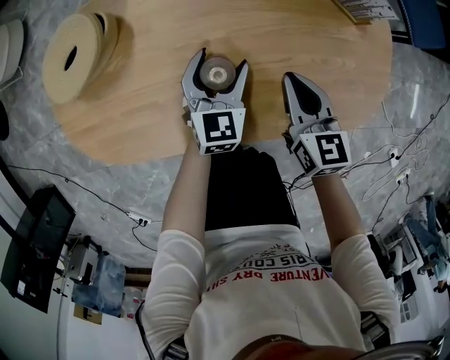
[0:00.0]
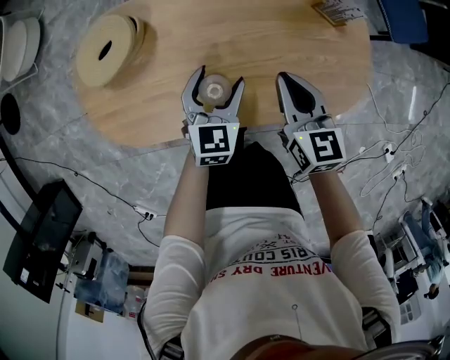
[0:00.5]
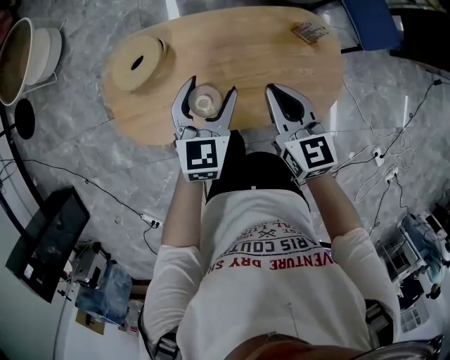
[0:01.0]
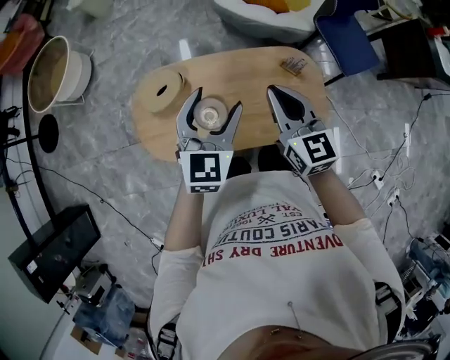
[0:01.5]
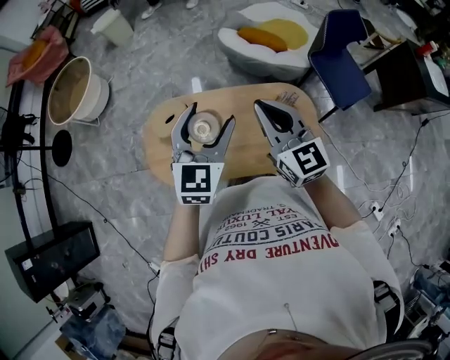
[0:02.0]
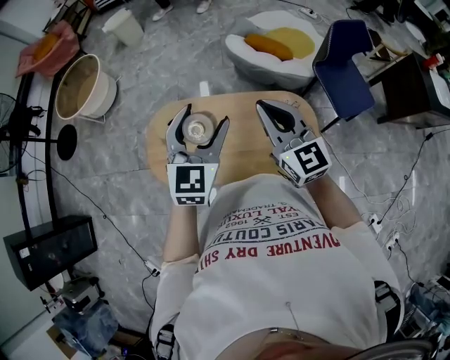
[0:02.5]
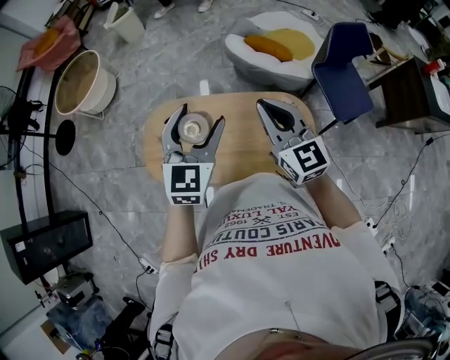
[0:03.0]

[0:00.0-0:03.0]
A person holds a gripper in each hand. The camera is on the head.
0.0 to 1.5 s: The grippers both shift upward by about 50 cm. The right gripper swivels approximately 20 degrees.
1.5 to 3.0 s: The grippers both shift upward by about 10 cm.

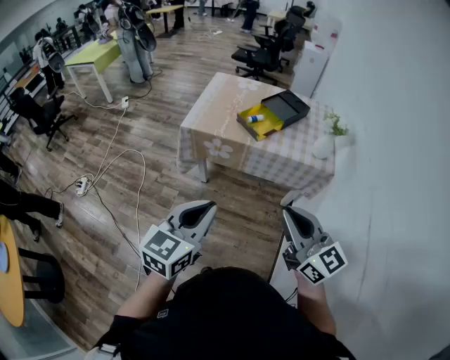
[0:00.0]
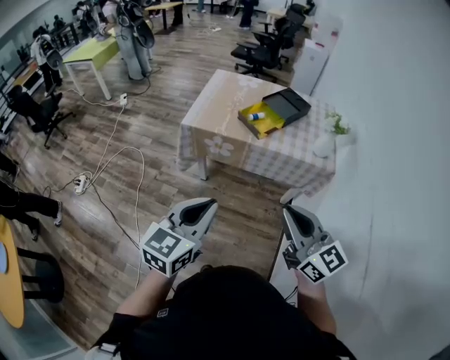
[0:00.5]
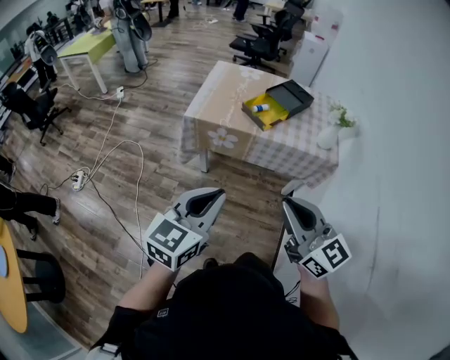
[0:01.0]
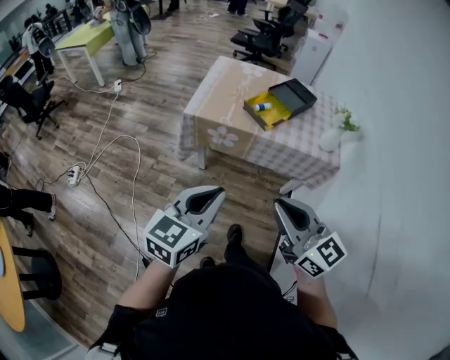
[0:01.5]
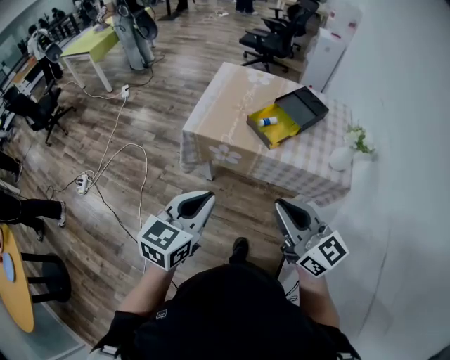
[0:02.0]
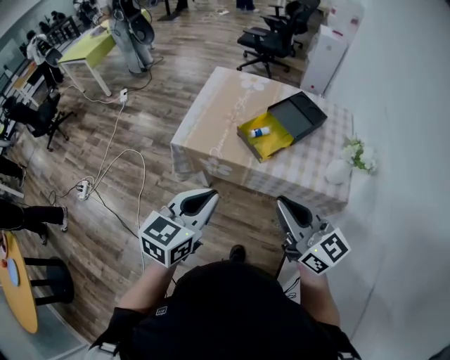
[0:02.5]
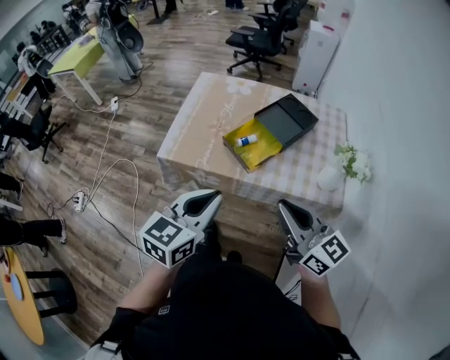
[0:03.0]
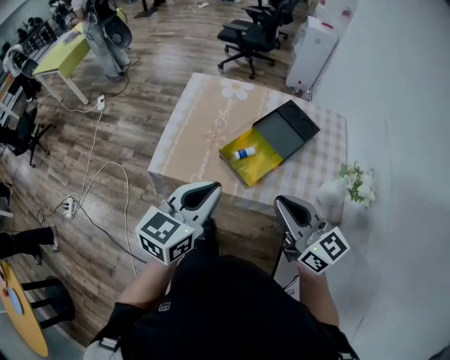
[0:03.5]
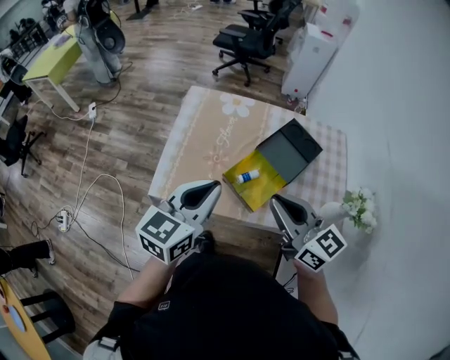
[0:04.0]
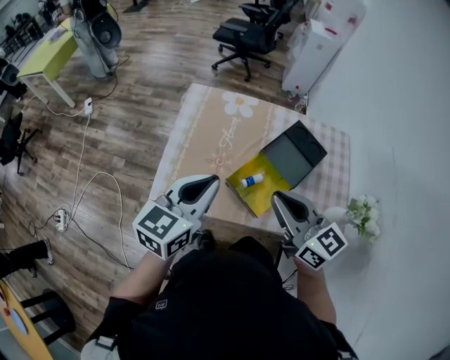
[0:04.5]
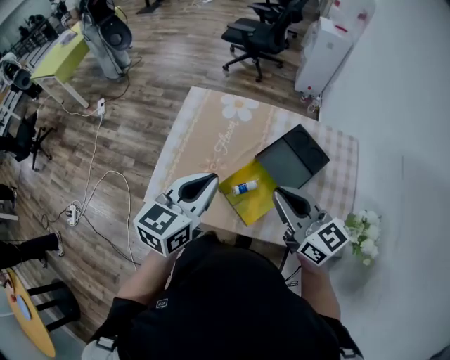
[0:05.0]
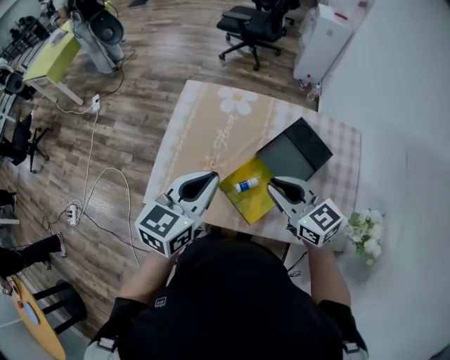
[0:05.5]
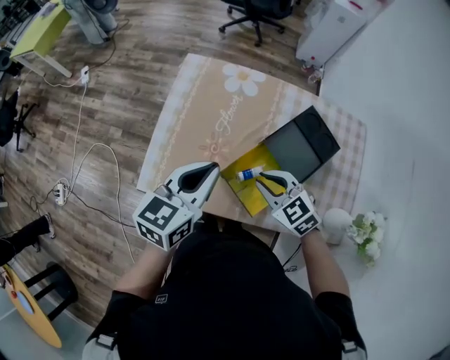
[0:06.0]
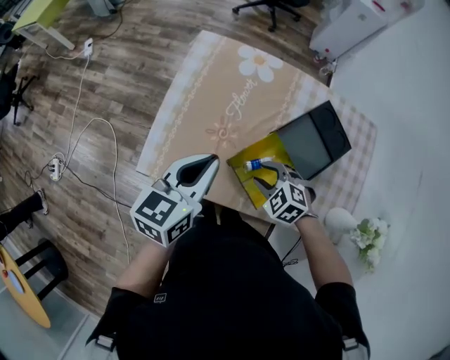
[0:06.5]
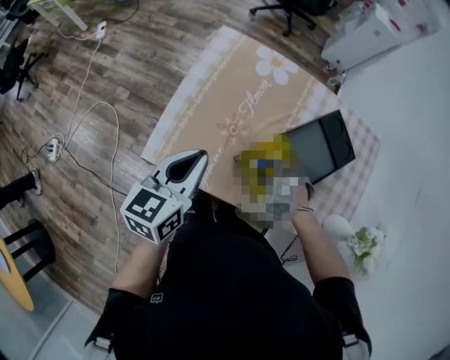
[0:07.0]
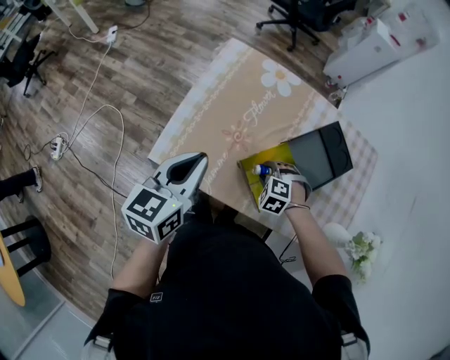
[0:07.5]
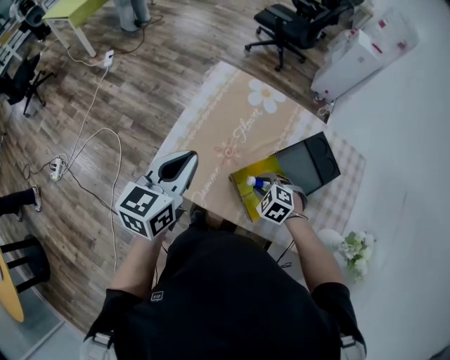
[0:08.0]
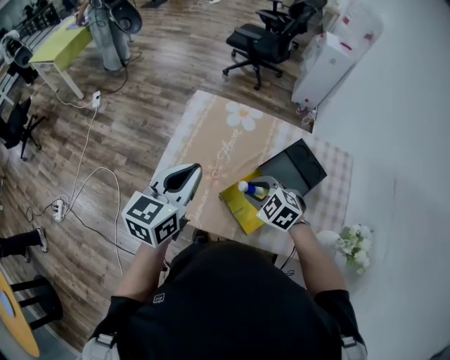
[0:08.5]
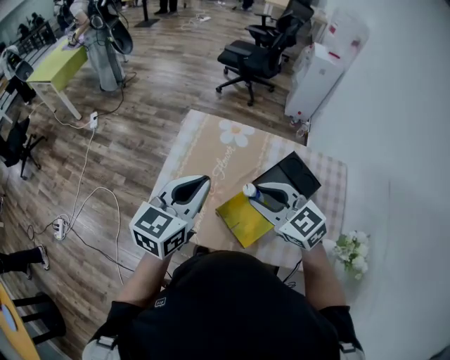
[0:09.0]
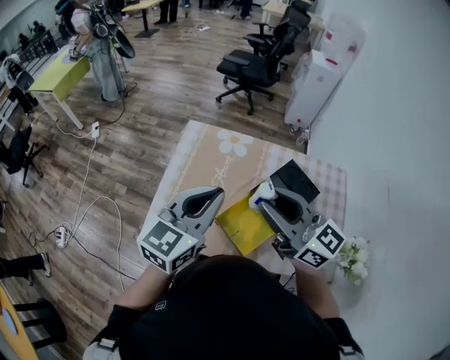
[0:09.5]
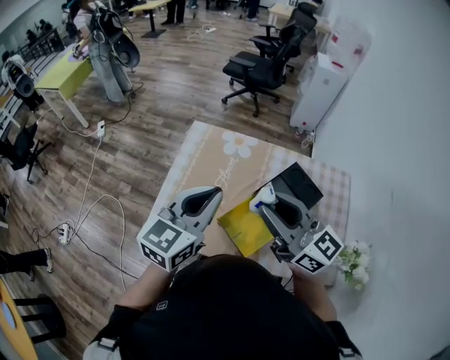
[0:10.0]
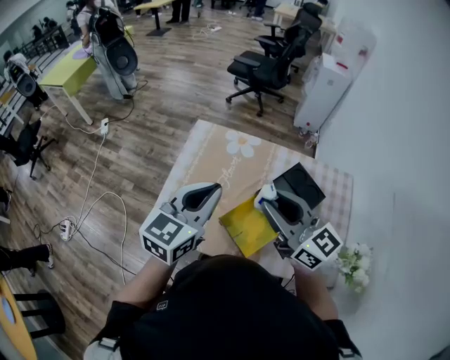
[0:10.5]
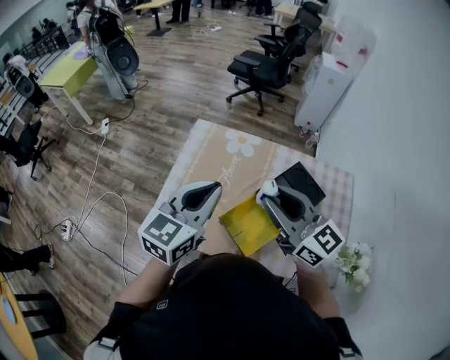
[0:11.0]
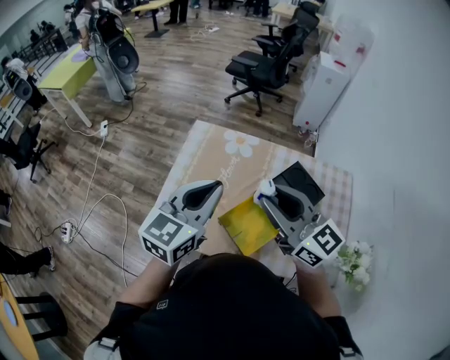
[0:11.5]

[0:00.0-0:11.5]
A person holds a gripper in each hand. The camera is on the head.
0.0 to 2.0 s: The grippers both shift forward by roughly 15 cm.
2.0 to 4.0 s: Both grippers travel together forward, approximately 35 cm.
4.0 to 6.0 s: The right gripper moves downward and forward, about 25 cm, and tips its fingers downward by approximately 40 degrees, while the left gripper travels forward and downward by roughly 15 cm.
6.0 to 7.5 s: The right gripper moves downward, about 15 cm, points its fingers some 30 degrees further downward, and opens. Meanwhile the left gripper is displaced to the left by approximately 10 cm.
7.5 to 9.5 s: The right gripper is displaced upward by approximately 40 cm, and angles its fingers upward, by some 80 degrees. The left gripper shifts some 20 cm upward and to the right, and changes its angle by approximately 30 degrees.
9.5 to 11.5 s: The grippers make only small movements.

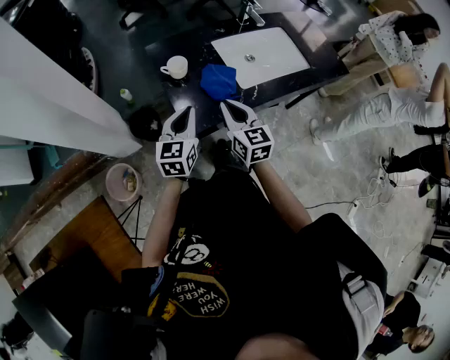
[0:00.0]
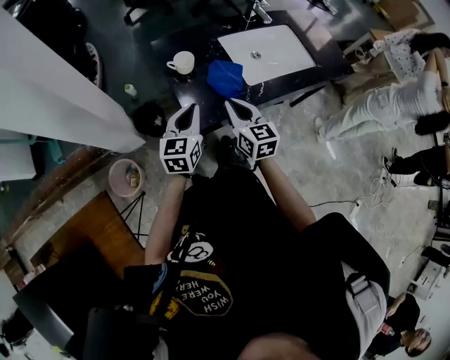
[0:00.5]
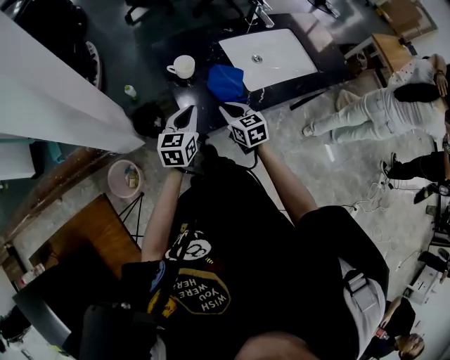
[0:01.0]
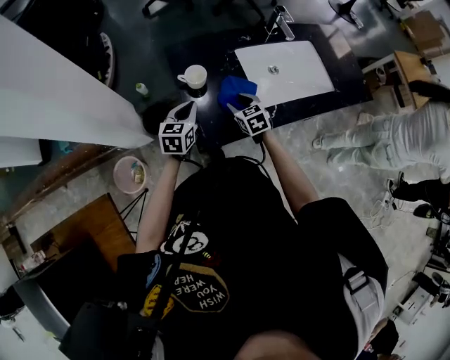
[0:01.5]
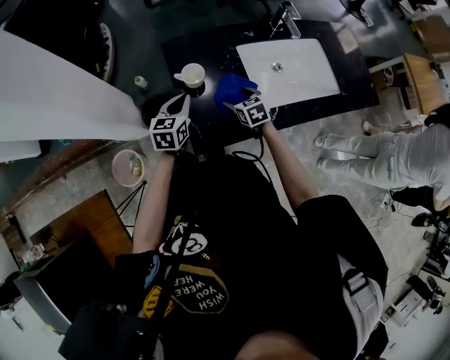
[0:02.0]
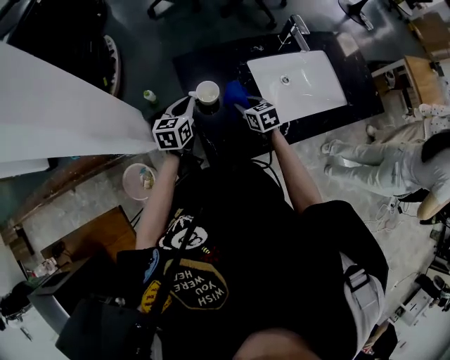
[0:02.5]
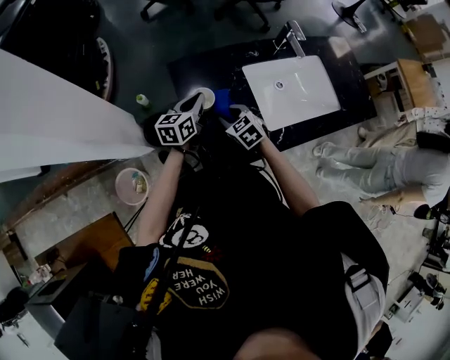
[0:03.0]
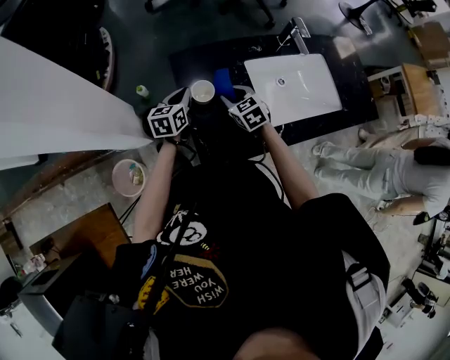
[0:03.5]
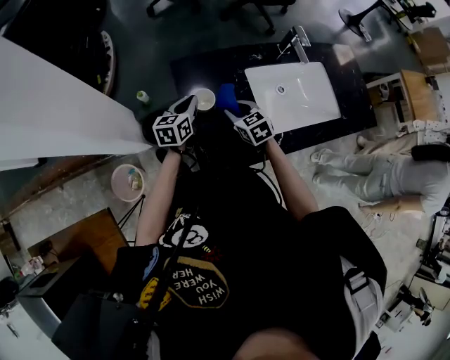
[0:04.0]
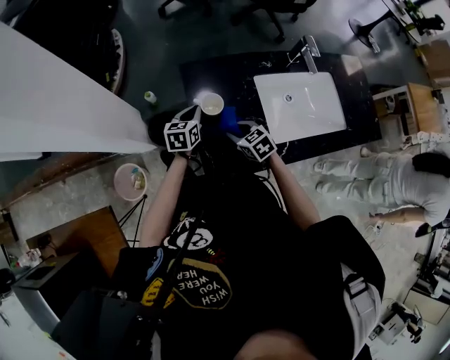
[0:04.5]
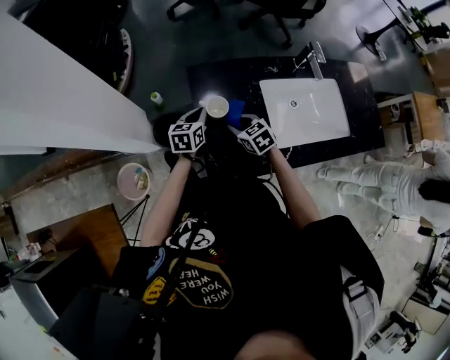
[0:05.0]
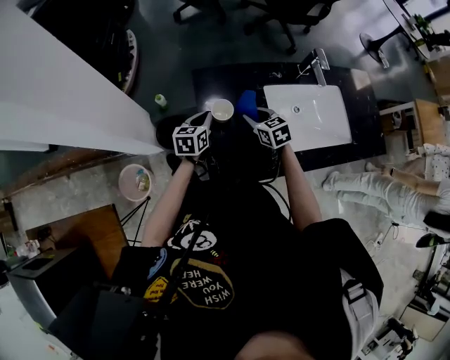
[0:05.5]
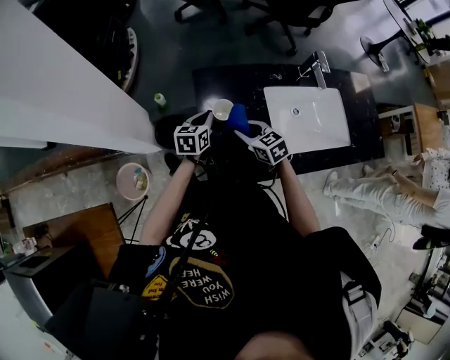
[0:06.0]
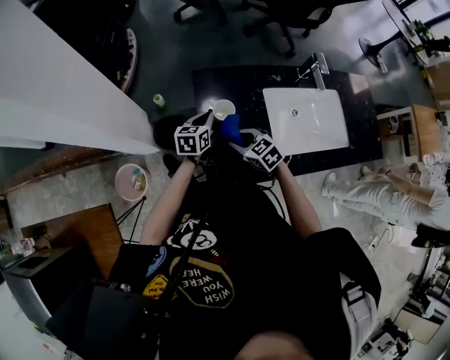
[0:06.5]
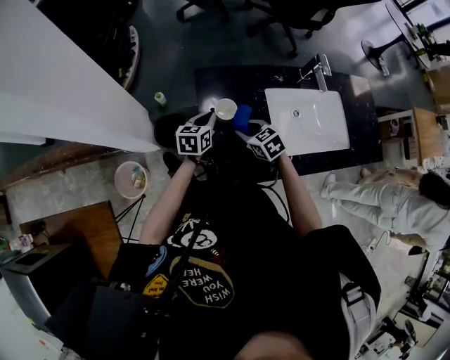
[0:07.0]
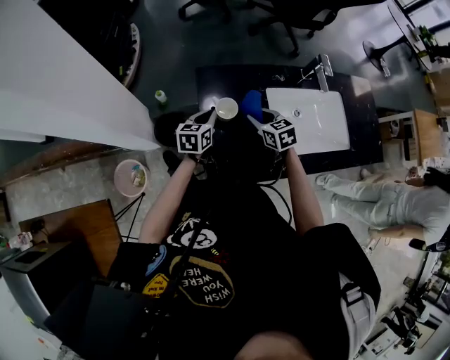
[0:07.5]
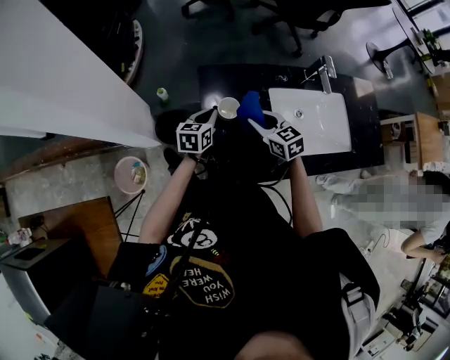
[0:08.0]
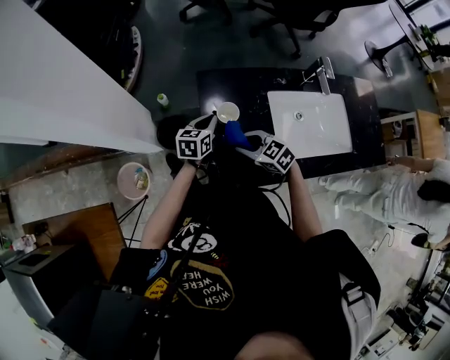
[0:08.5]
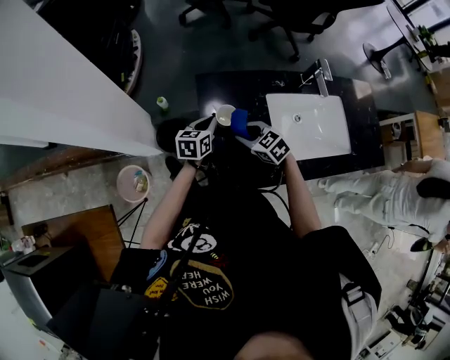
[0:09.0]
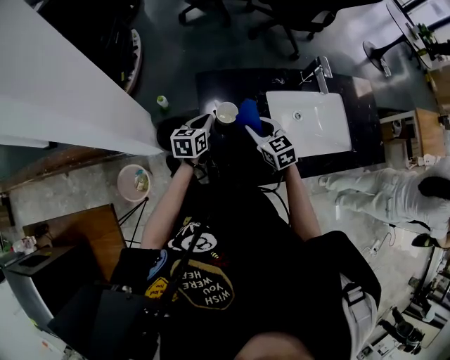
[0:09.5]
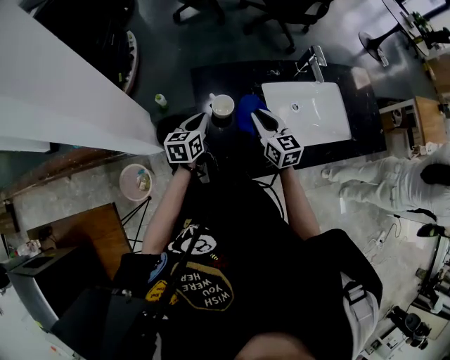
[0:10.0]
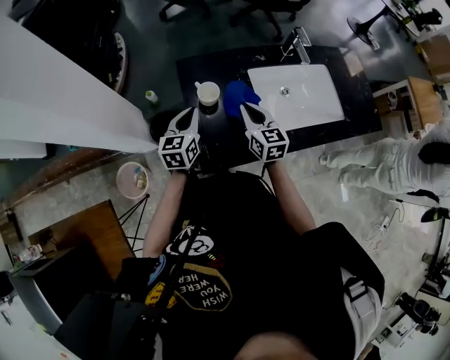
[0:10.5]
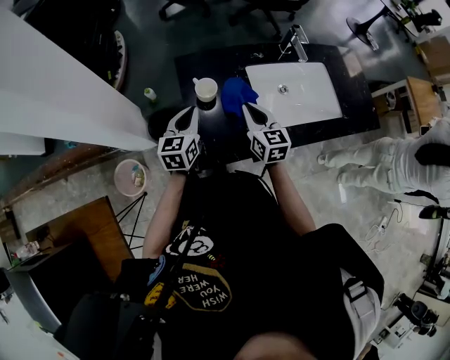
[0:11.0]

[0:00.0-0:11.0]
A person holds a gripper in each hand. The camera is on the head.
0.0 to 2.0 s: The right gripper goes approximately 25 cm downward and forward, angles its fingers downward, by some 30 degrees, and opens. The left gripper heads forward and downward, covering about 15 cm.
2.0 to 3.5 s: The right gripper travels forward, to the left and upward by roughly 10 cm, and closes its fingers. The left gripper is displaced forward by approximately 10 cm.
3.5 to 5.5 s: The right gripper moves about 10 cm backward and comes back.
7.5 to 9.0 s: The right gripper moves to the left, some 5 cm, and rotates about 20 degrees.
9.0 to 11.0 s: The left gripper is displaced upward and backward by roughly 10 cm, while the right gripper goes roughly 10 cm upward and to the right, and swivels roughly 50 degrees.

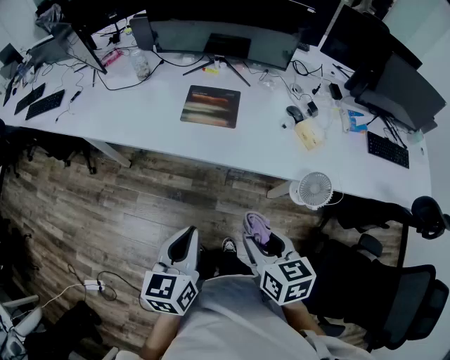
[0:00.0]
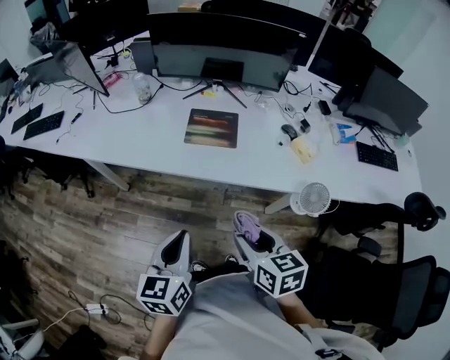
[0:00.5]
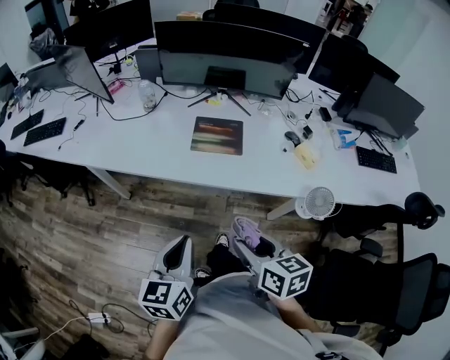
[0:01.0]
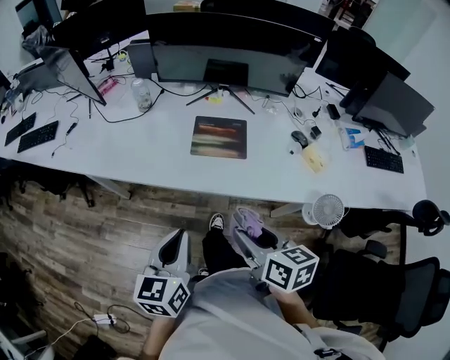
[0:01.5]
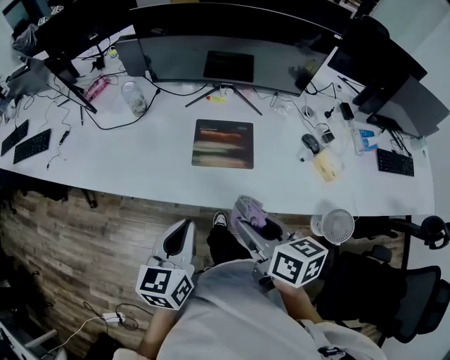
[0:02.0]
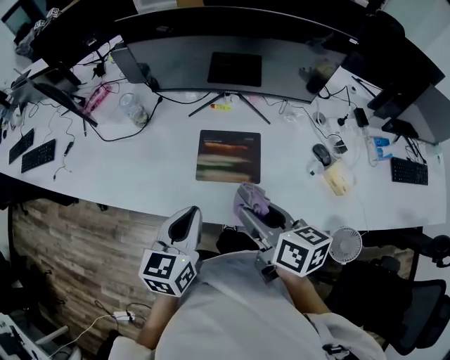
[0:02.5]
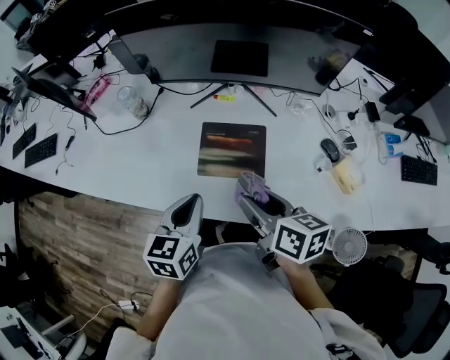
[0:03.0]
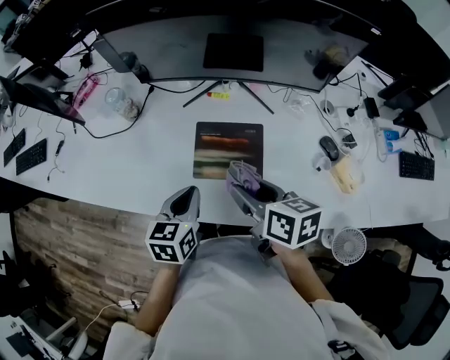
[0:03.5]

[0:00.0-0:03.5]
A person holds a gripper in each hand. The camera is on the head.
0.0 to 2.0 s: The right gripper shifts some 25 cm forward and to the left. The left gripper travels forward by approximately 20 cm.
2.0 to 3.5 s: The left gripper moves forward and downward, about 20 cm. The right gripper travels forward by approximately 20 cm.
